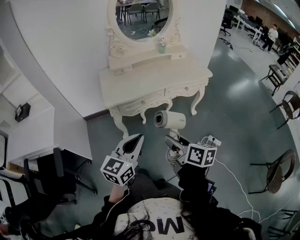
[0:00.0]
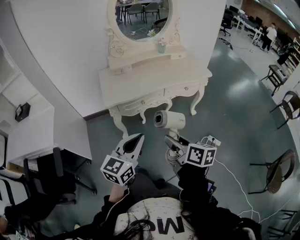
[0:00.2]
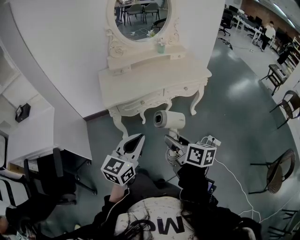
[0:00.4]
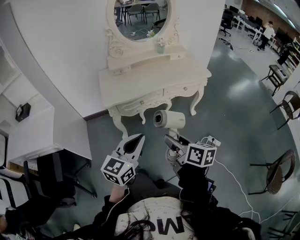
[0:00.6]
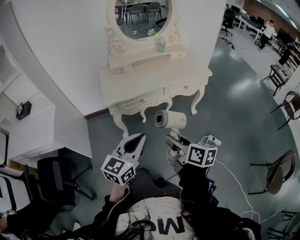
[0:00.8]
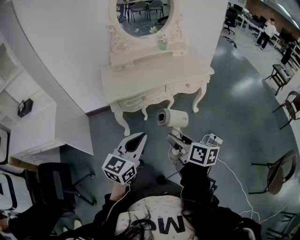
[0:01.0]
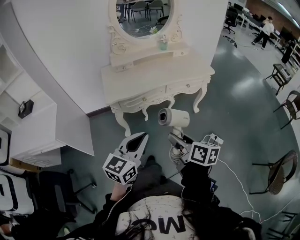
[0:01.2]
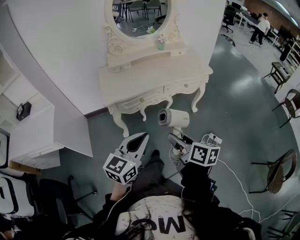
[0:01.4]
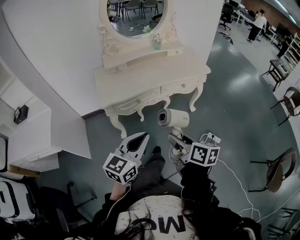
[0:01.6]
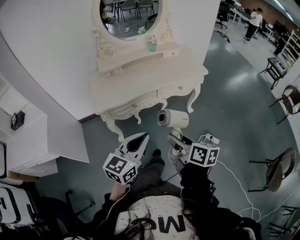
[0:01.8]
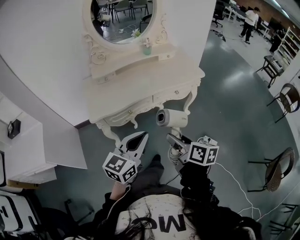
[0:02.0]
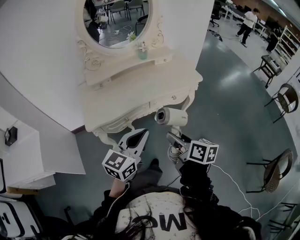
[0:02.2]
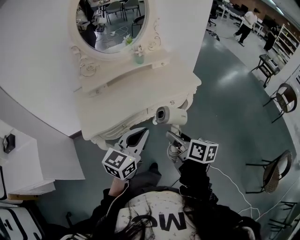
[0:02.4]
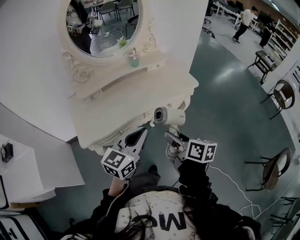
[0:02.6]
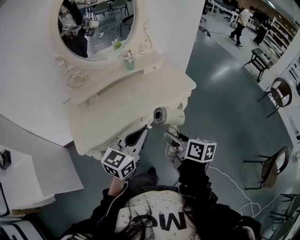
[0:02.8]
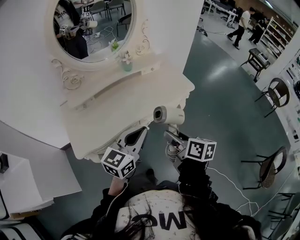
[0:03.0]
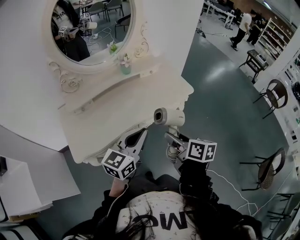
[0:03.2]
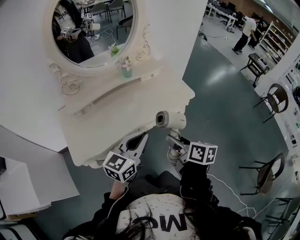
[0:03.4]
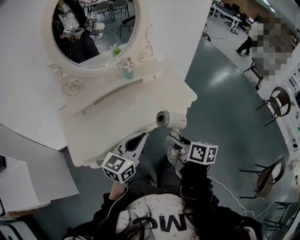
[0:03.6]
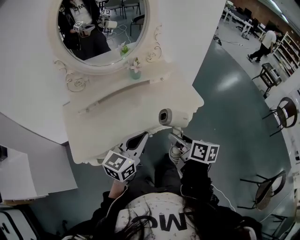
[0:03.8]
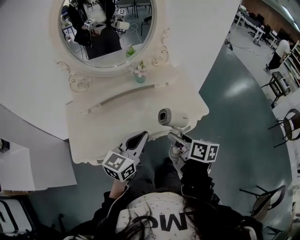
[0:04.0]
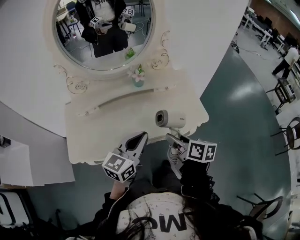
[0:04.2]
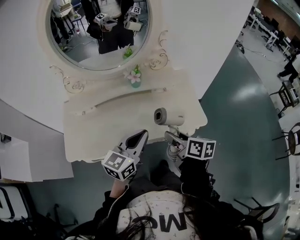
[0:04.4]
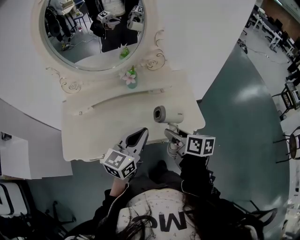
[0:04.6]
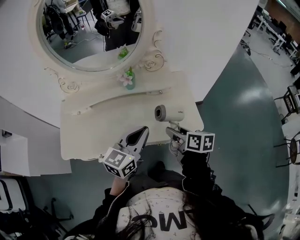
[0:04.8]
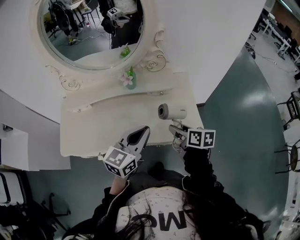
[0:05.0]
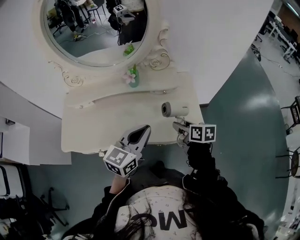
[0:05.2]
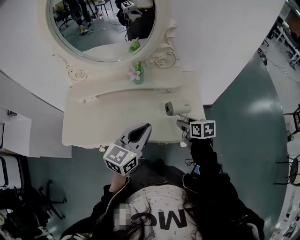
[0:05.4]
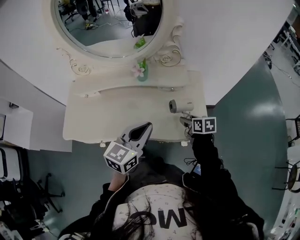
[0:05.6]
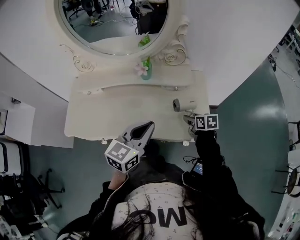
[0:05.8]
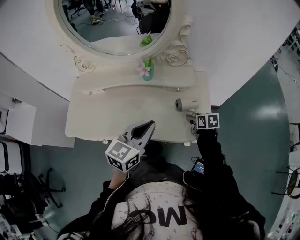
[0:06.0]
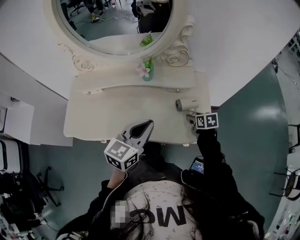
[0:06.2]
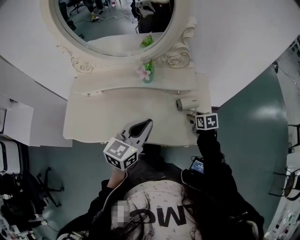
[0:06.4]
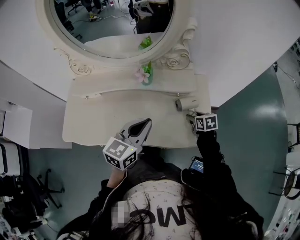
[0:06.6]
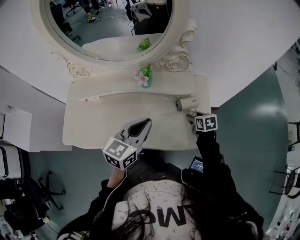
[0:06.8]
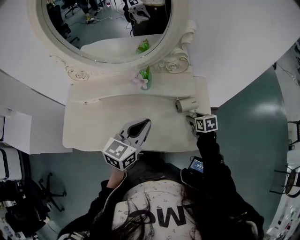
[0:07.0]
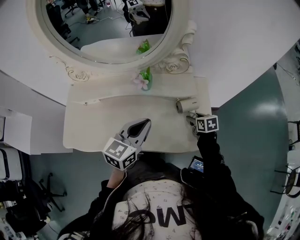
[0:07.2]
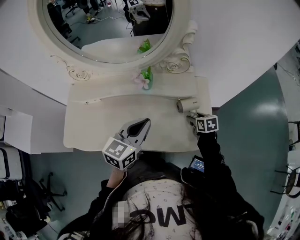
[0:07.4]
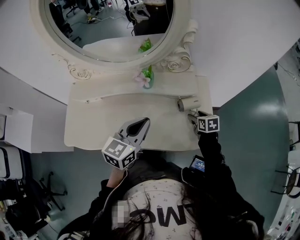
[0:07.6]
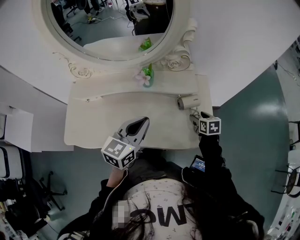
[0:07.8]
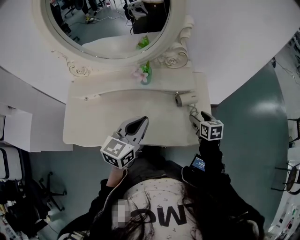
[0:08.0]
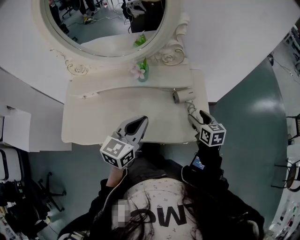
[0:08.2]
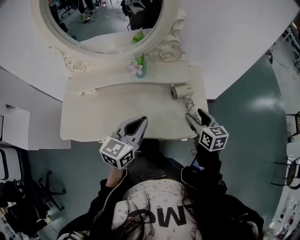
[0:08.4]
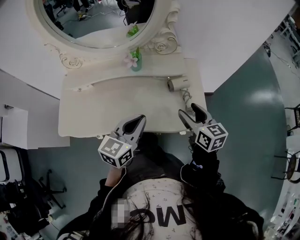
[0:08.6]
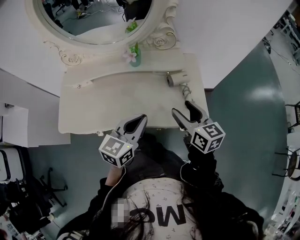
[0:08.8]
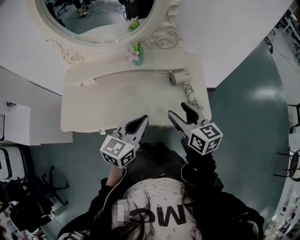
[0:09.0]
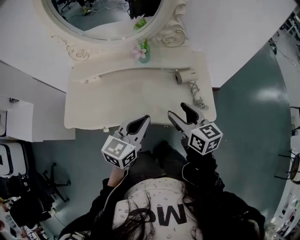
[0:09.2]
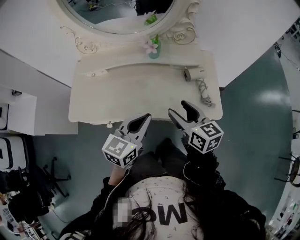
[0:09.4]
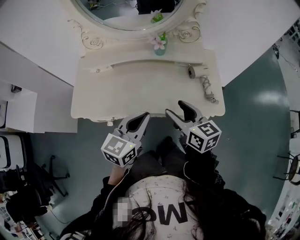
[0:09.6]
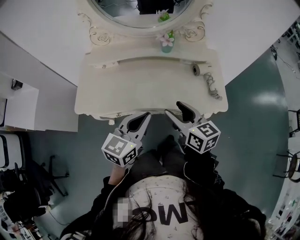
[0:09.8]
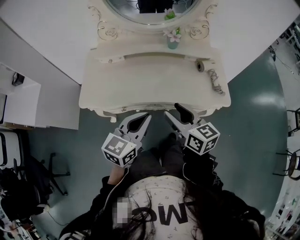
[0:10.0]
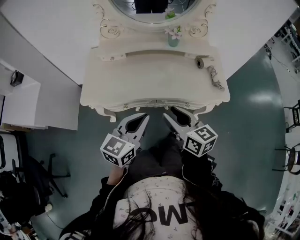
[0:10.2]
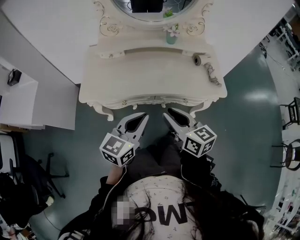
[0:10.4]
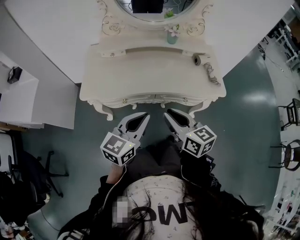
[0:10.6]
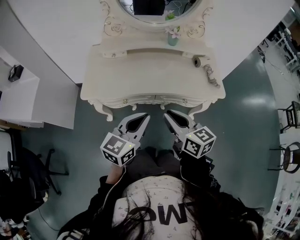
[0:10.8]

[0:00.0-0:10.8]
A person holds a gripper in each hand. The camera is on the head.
0:00.0 to 0:01.6: The right gripper changes place by roughly 5 cm, while the left gripper goes roughly 5 cm to the right.
0:01.6 to 0:03.0: Both grippers move forward, roughly 30 cm.
0:03.0 to 0:04.6: The left gripper travels forward and to the right by about 20 cm. Meanwhile the right gripper is displaced forward by about 25 cm, and rotates approximately 20 degrees.
0:04.6 to 0:06.2: The right gripper moves downward, forward and to the right, approximately 25 cm, and changes its angle by roughly 40 degrees, while the left gripper ends up about 5 cm from where it was.
0:06.2 to 0:07.8: The left gripper heads forward, covering some 5 cm.
0:07.8 to 0:09.2: The right gripper heads upward, backward and to the left, covering some 30 cm, and points its fingers approximately 30 degrees further upward, while the left gripper moves backward, roughly 10 cm.
0:09.2 to 0:10.8: The right gripper heads to the left and backward, covering some 30 cm, and closes its fingers; the left gripper travels backward and to the left by about 25 cm.

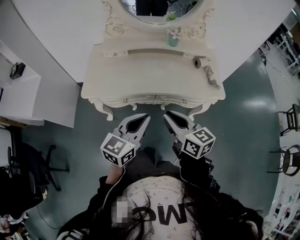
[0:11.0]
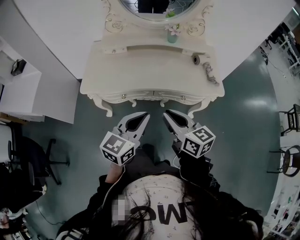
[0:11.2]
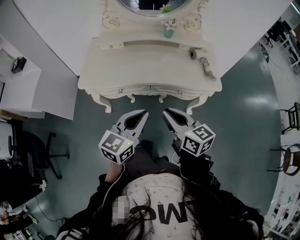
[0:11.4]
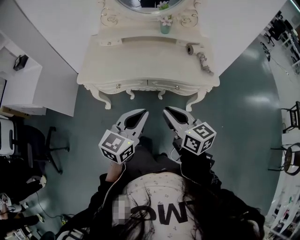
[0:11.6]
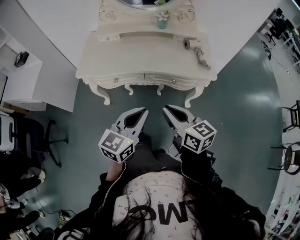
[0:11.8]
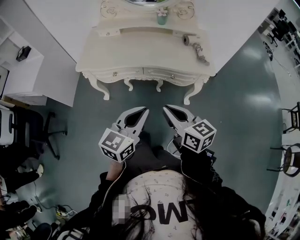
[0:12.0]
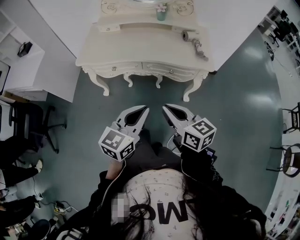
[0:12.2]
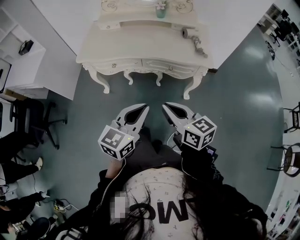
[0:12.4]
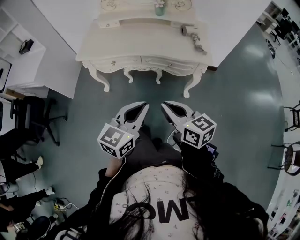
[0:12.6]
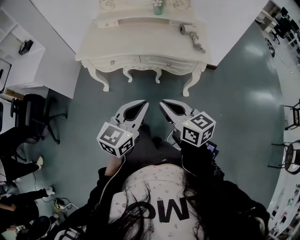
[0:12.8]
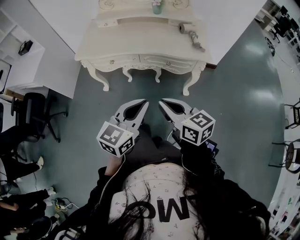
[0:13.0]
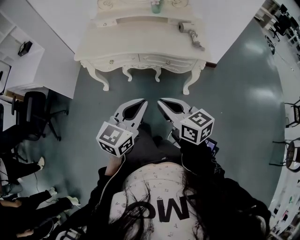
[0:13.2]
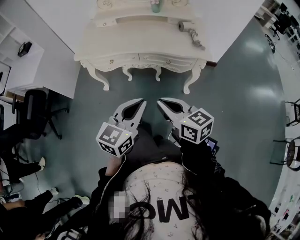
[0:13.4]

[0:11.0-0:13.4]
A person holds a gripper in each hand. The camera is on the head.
0:11.0 to 0:12.2: The grippers both shift backward and to the right by some 20 cm.
0:12.2 to 0:13.4: The grippers move only a little.

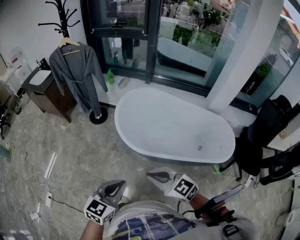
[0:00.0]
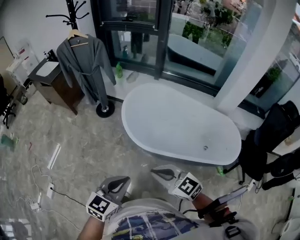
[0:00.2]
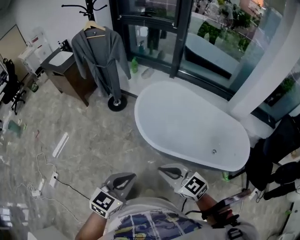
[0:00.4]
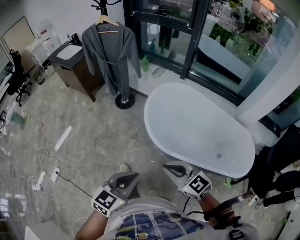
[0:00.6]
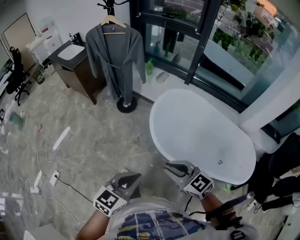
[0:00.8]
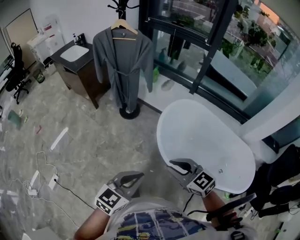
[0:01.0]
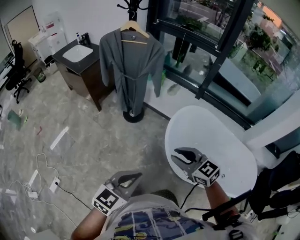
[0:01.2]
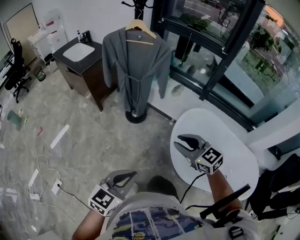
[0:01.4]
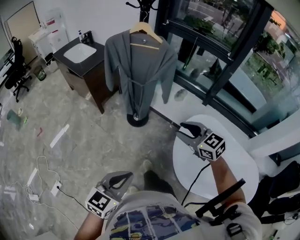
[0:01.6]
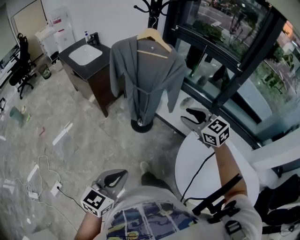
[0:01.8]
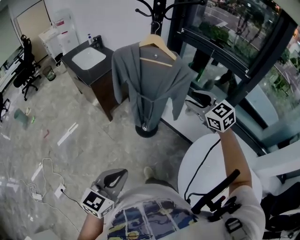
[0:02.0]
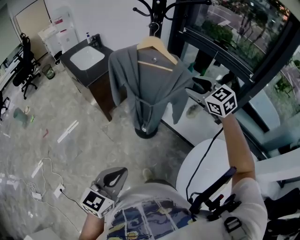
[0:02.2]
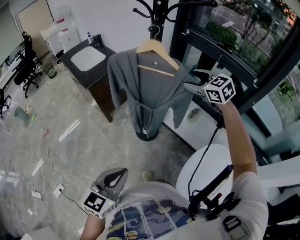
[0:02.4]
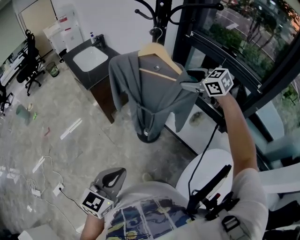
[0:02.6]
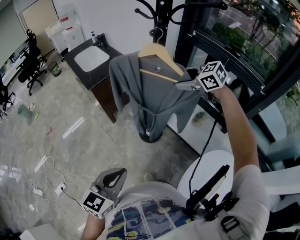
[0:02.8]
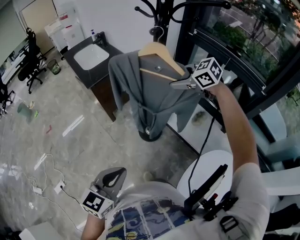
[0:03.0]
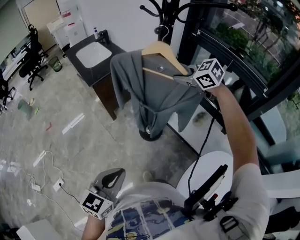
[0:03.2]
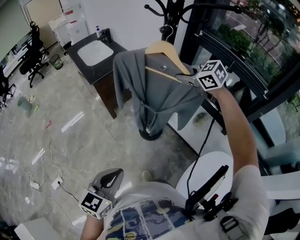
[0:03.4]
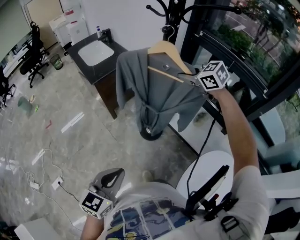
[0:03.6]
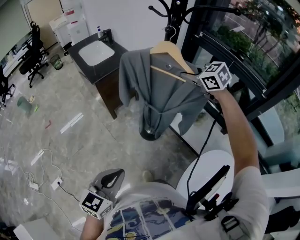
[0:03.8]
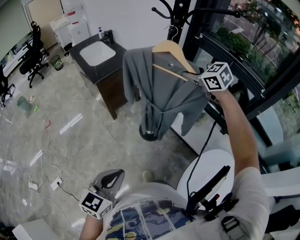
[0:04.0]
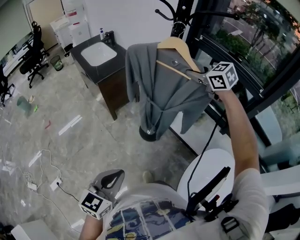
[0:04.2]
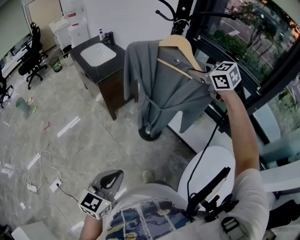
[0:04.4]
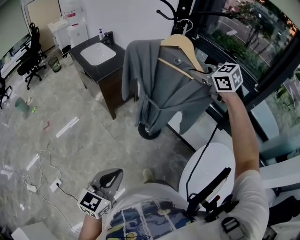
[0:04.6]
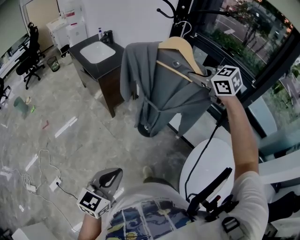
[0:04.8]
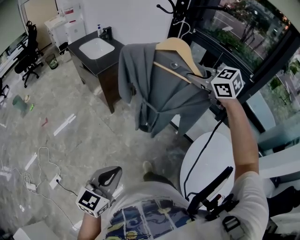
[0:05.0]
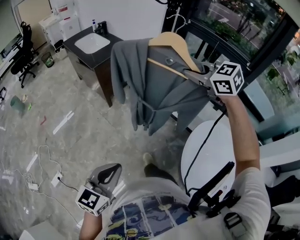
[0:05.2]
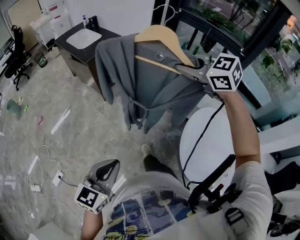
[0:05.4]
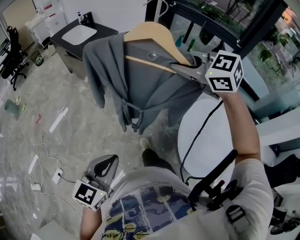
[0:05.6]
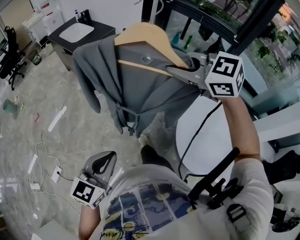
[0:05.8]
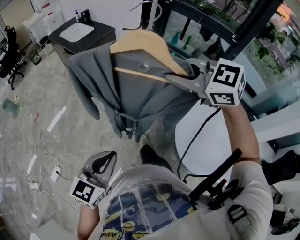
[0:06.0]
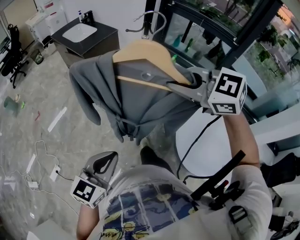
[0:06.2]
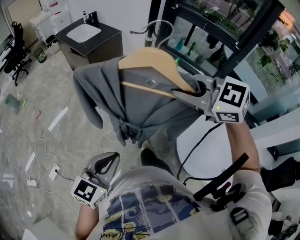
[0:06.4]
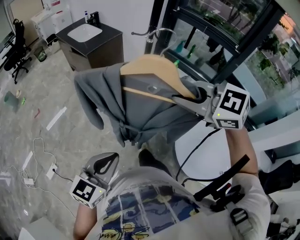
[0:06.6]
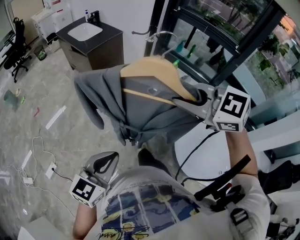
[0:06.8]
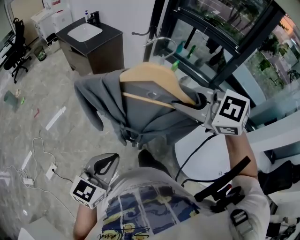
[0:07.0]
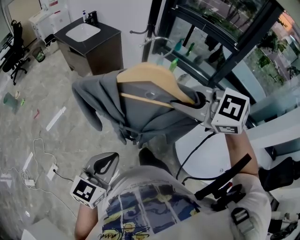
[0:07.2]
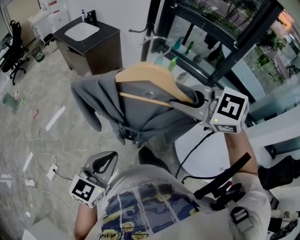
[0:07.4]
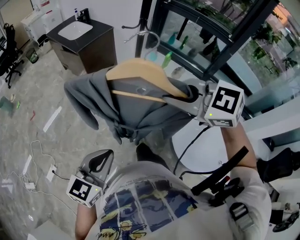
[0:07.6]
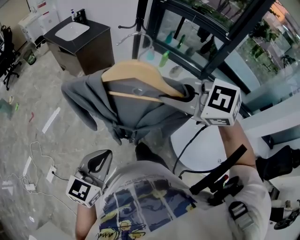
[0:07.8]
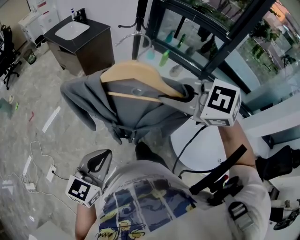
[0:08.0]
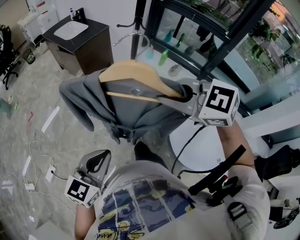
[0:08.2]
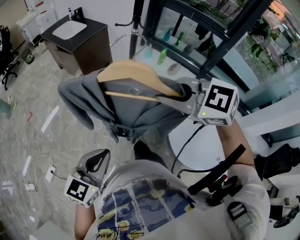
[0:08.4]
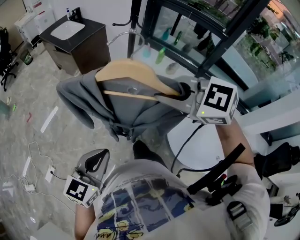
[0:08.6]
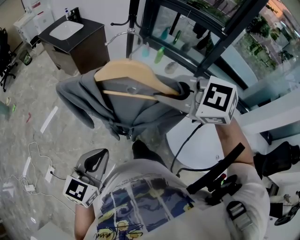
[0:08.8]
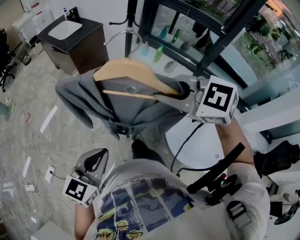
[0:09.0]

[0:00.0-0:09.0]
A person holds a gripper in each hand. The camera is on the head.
0:00.0 to 0:01.6: The pair of grippers is taken forward and to the left, some 50 cm. The right gripper opens up.
0:01.6 to 0:03.0: The right gripper ends up some 50 cm from where it was, swivels roughly 30 degrees, and opens; the left gripper shifts by roughly 25 cm.
0:03.0 to 0:04.4: The right gripper shifts some 10 cm upward and backward, and closes up. The left gripper is displaced to the left and backward by approximately 10 cm.
0:04.4 to 0:06.0: The right gripper shifts approximately 35 cm backward, while the left gripper is displaced backward by roughly 15 cm.
0:06.0 to 0:07.6: The right gripper goes approximately 10 cm backward.
0:07.6 to 0:09.0: The grippers stay close to where they were, moving slightly.

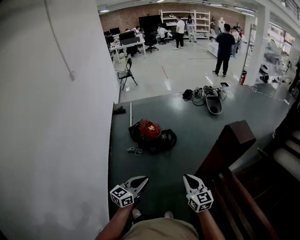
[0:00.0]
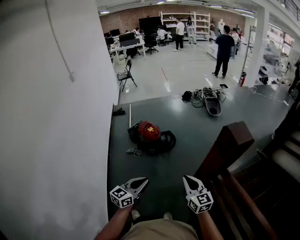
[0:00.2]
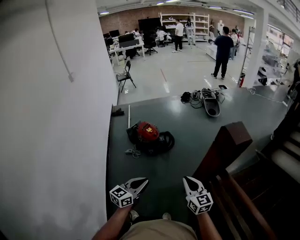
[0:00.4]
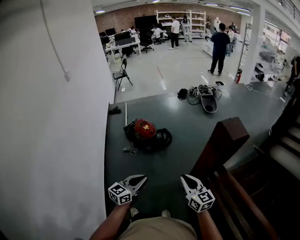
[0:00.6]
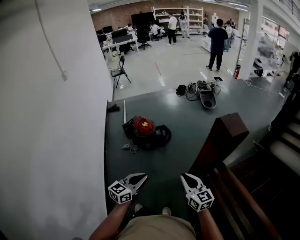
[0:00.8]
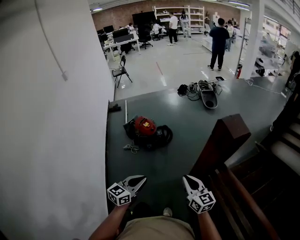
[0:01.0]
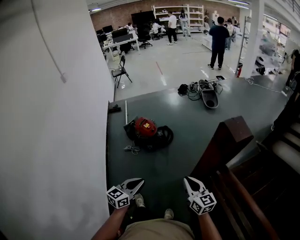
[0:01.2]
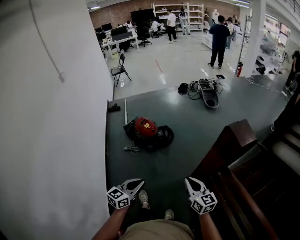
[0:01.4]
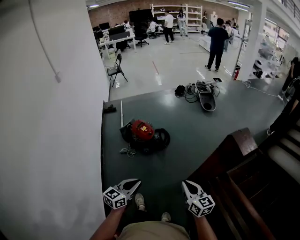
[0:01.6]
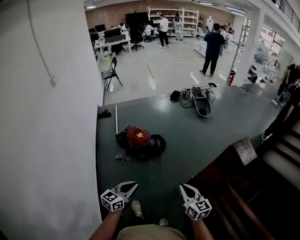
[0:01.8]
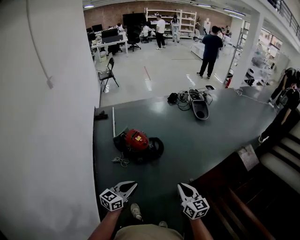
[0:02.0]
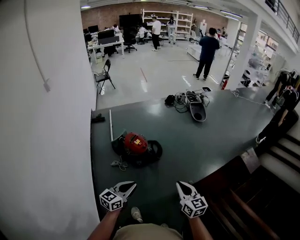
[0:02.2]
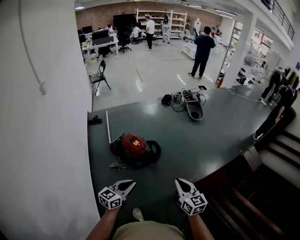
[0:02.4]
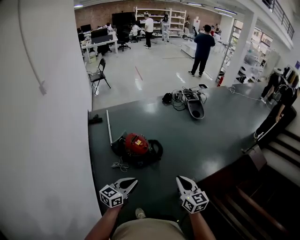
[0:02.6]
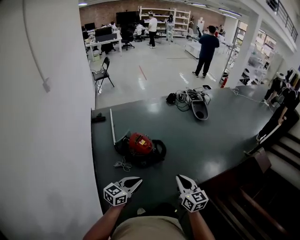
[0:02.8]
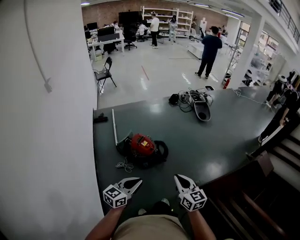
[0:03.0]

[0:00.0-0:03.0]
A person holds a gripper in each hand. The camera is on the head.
0:00.0 to 0:01.6: The left gripper travels forward by some 5 cm. The right gripper shifts by approximately 5 cm.
0:01.6 to 0:03.0: Both grippers travel together to the left and forward, some 30 cm.
